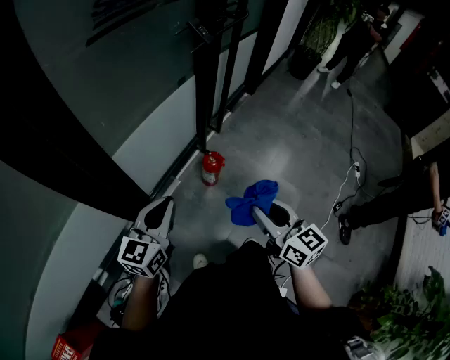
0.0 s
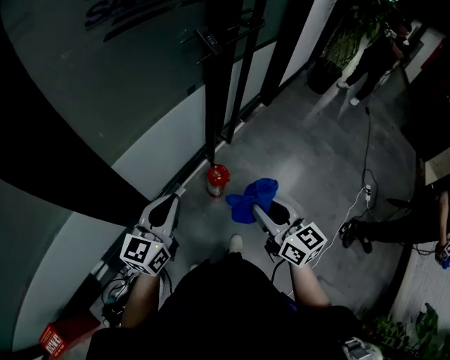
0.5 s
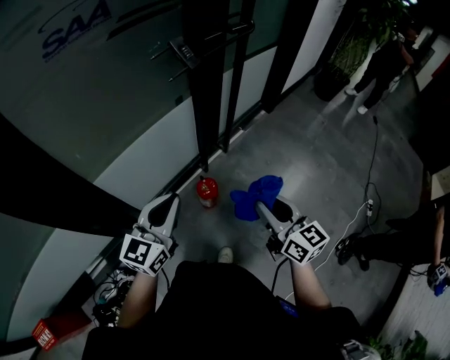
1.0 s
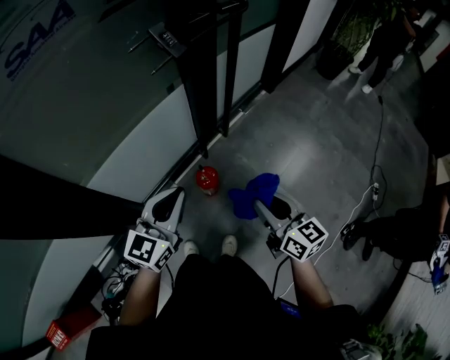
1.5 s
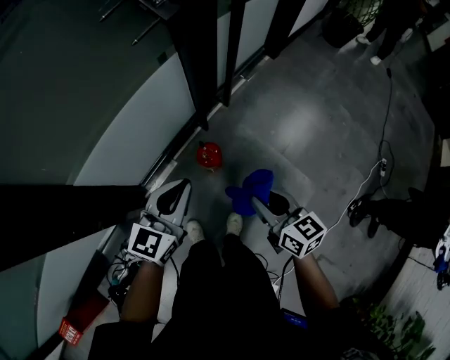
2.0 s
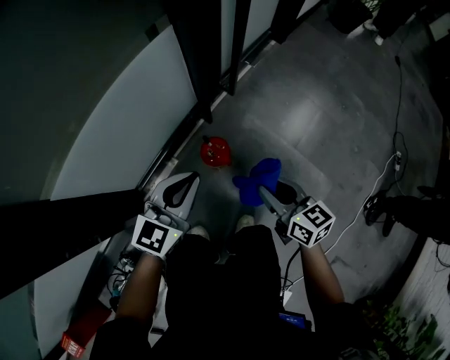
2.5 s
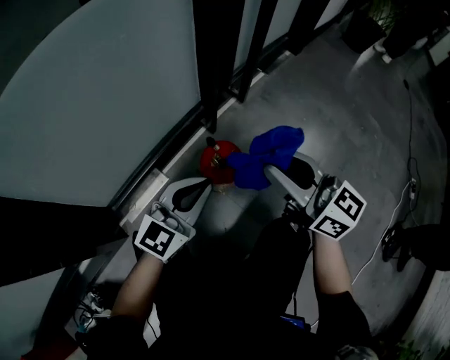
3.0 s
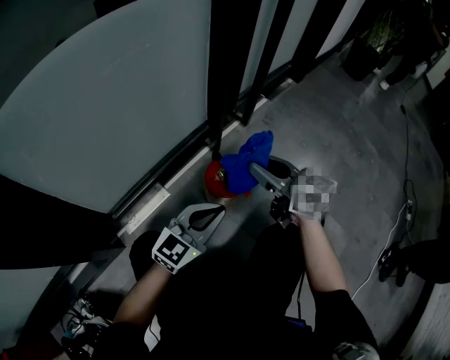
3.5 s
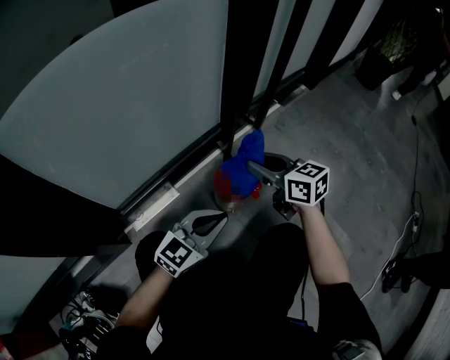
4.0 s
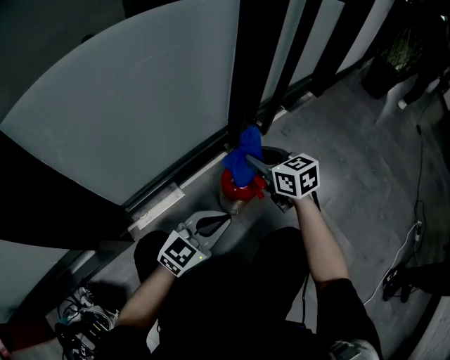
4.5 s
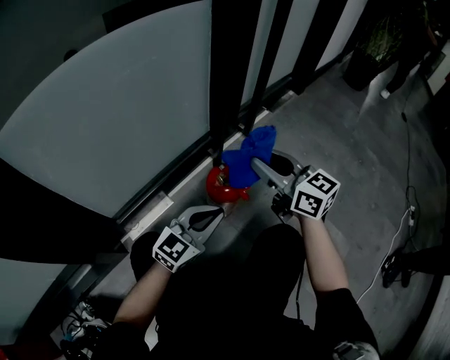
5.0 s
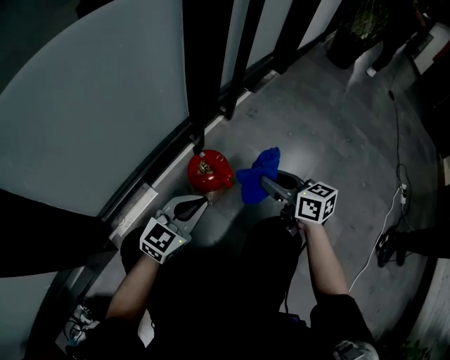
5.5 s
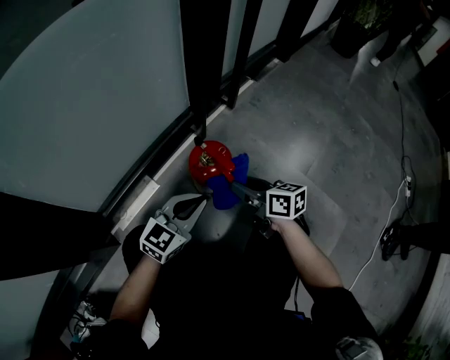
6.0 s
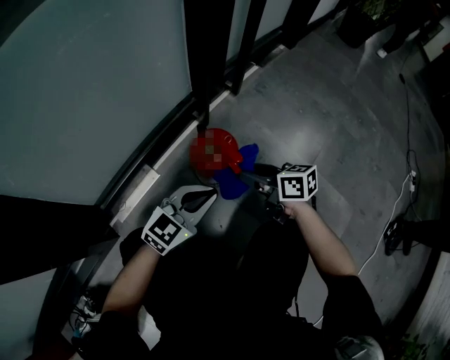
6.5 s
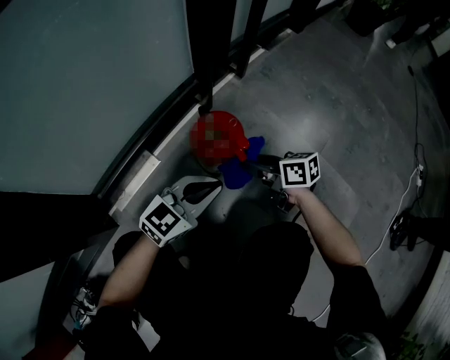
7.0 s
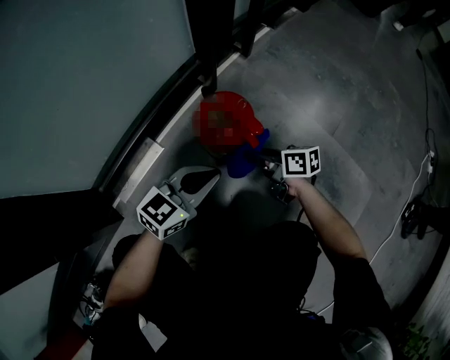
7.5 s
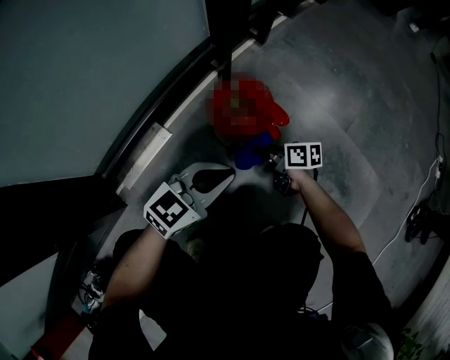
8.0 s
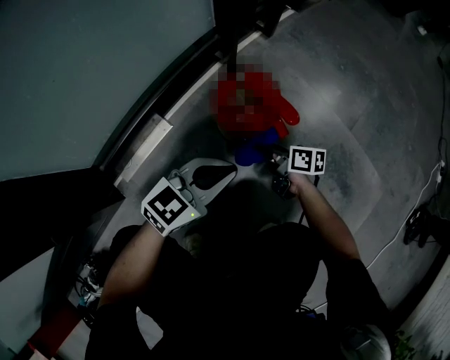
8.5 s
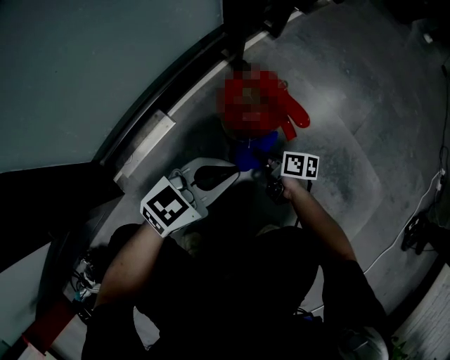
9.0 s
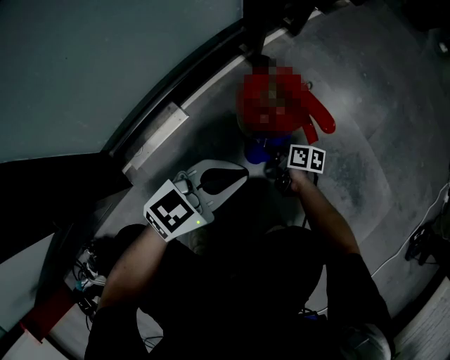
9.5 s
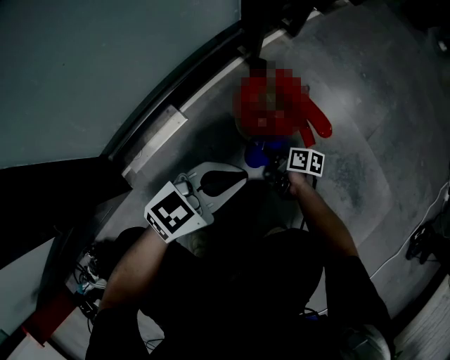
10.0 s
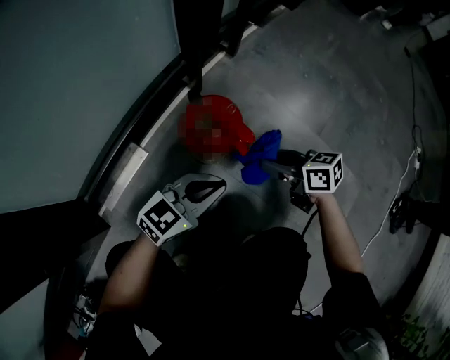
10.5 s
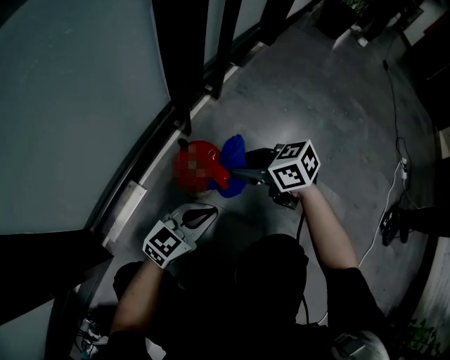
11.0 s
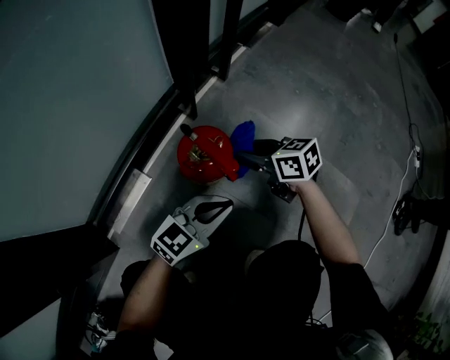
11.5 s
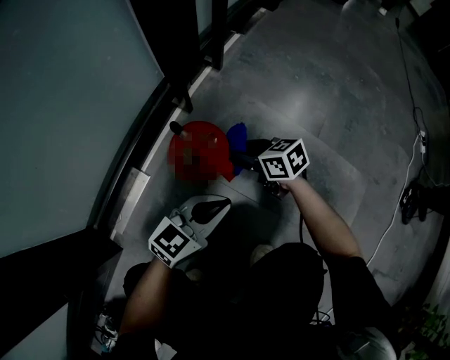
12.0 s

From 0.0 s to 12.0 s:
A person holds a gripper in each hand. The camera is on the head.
From 0.0 s to 2.0 s: The right gripper is displaced forward, downward and to the right by some 30 cm. The left gripper travels forward, to the right and downward by about 30 cm.
From 2.0 s to 4.0 s: The right gripper is displaced downward and forward by approximately 40 cm. The left gripper heads downward, covering some 50 cm.
From 4.0 s to 6.0 s: The right gripper travels downward and backward by some 15 cm, and swivels about 20 degrees.
From 6.0 s to 8.0 s: The right gripper moves downward, approximately 25 cm, and changes its angle by about 20 degrees. The left gripper goes roughly 10 cm downward.
From 8.0 s to 10.0 s: The right gripper shifts some 10 cm downward.
From 10.0 s to 12.0 s: The right gripper is displaced upward by roughly 20 cm, and turns by approximately 40 degrees, while the left gripper moves about 10 cm.

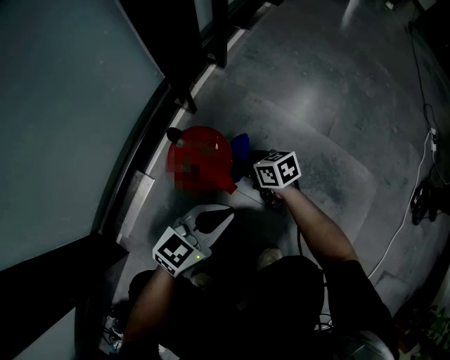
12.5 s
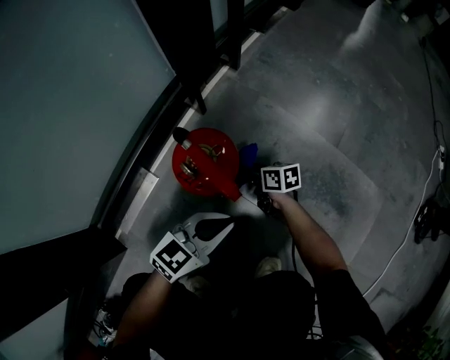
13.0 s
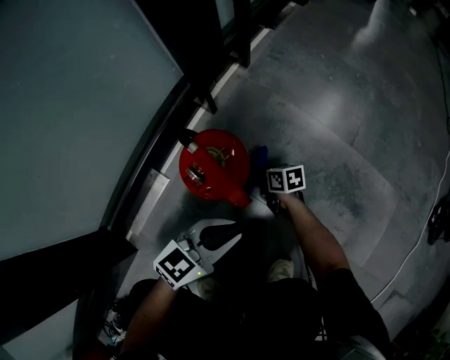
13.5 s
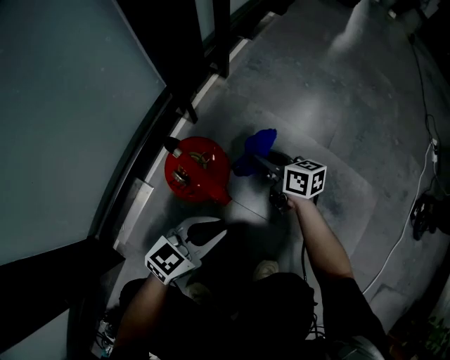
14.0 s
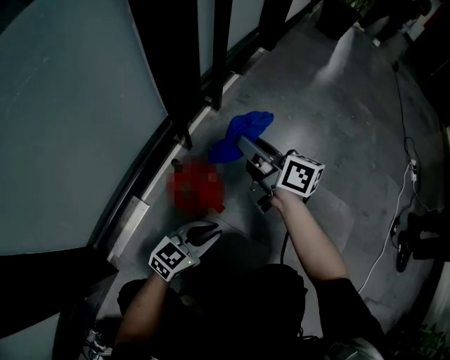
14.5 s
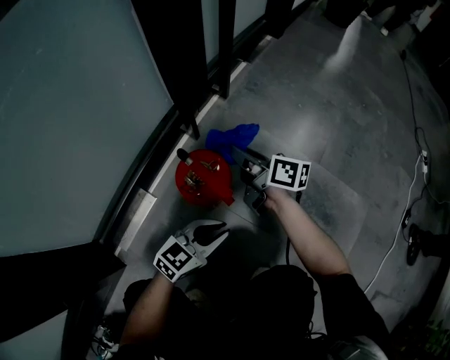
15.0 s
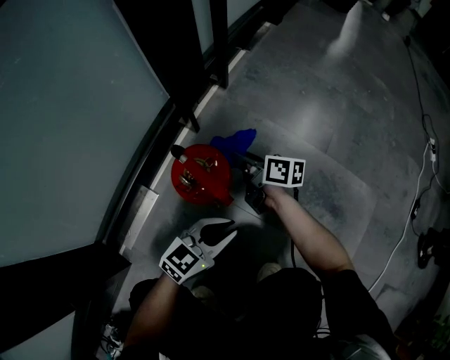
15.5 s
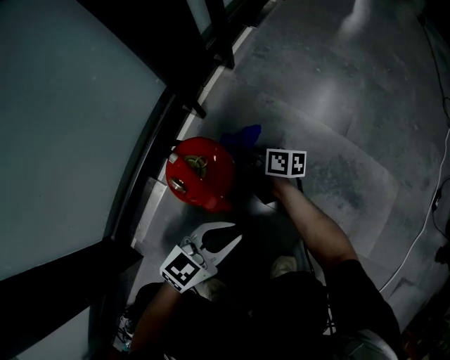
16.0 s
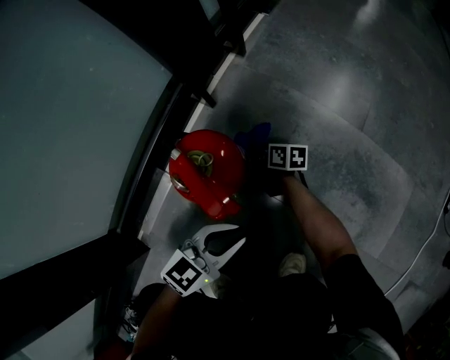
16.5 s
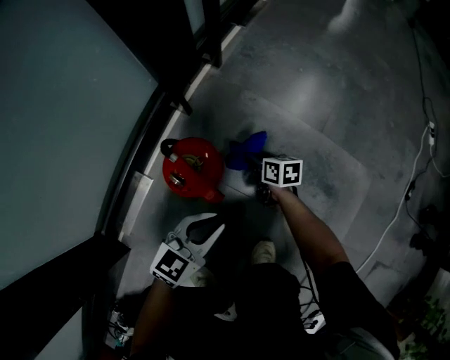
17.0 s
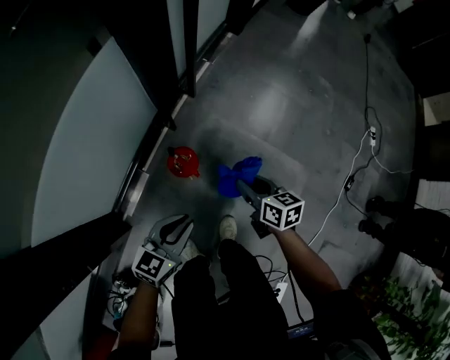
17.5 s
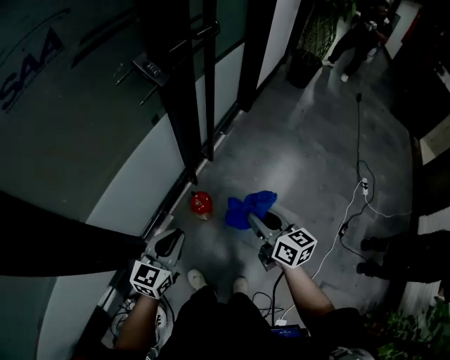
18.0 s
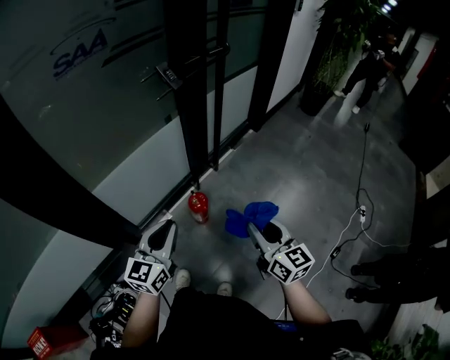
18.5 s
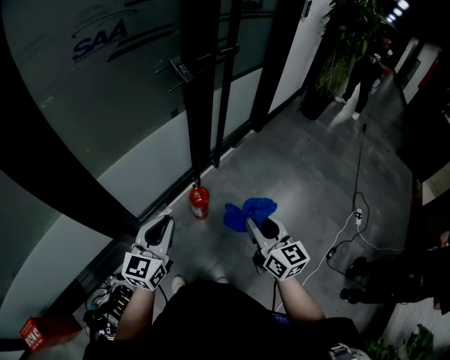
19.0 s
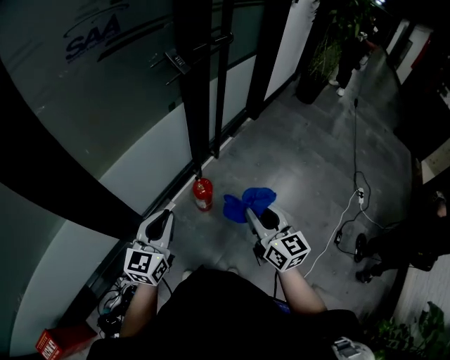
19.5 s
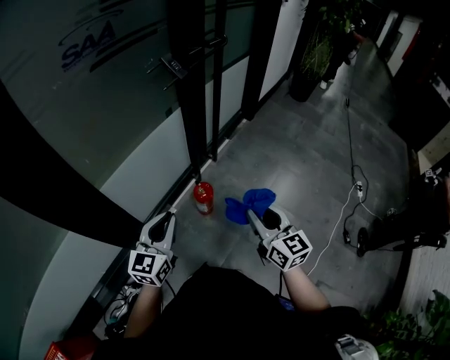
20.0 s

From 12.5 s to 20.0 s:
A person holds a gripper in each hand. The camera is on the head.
From 12.5 s to 14.5 s: The right gripper shifts about 30 cm upward, and angles its fingers upward, by some 40 degrees.
From 14.5 s to 16.5 s: The right gripper shifts approximately 40 cm downward, and tips its fingers downward by roughly 30 degrees.
From 16.5 s to 18.0 s: Both grippers travel together upward, some 80 cm. The right gripper changes its angle by roughly 40 degrees. Meanwhile the left gripper turns by some 30 degrees.
From 18.0 s to 20.0 s: The two grippers go about 15 cm backward and upward.

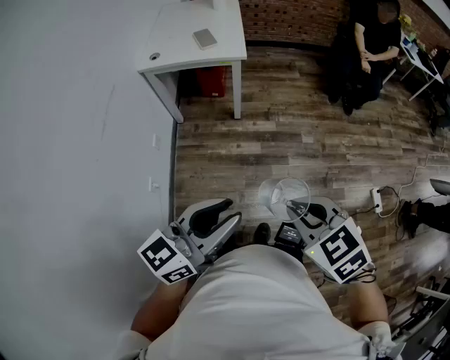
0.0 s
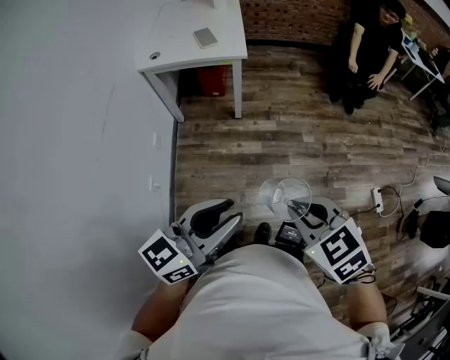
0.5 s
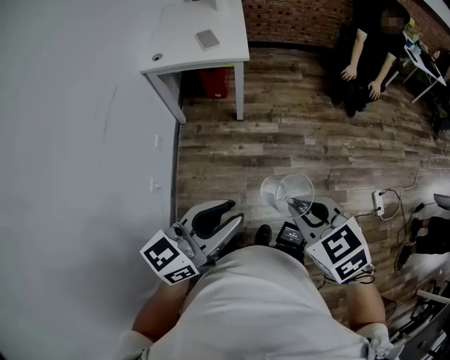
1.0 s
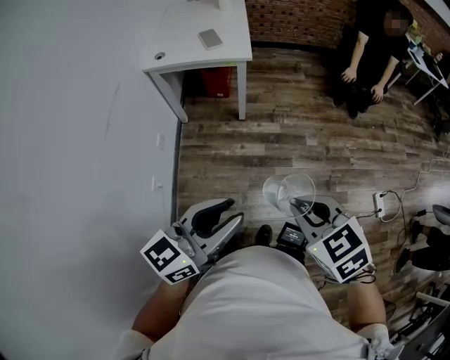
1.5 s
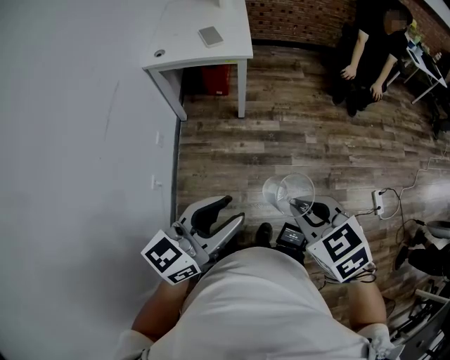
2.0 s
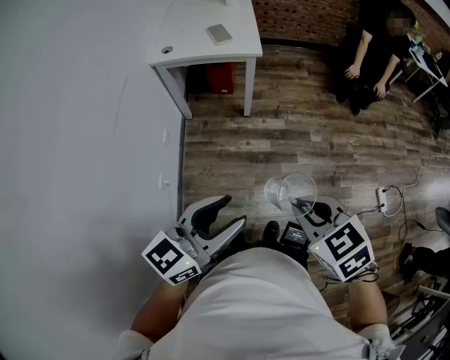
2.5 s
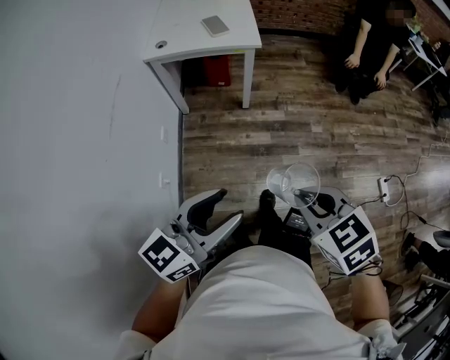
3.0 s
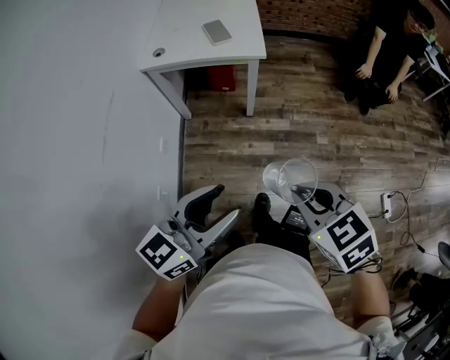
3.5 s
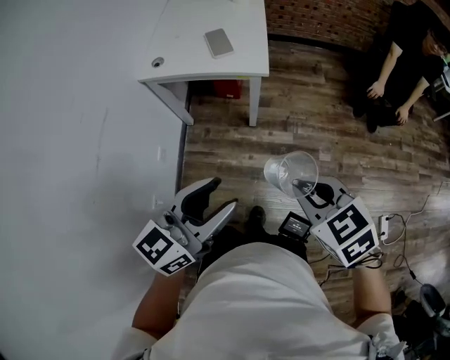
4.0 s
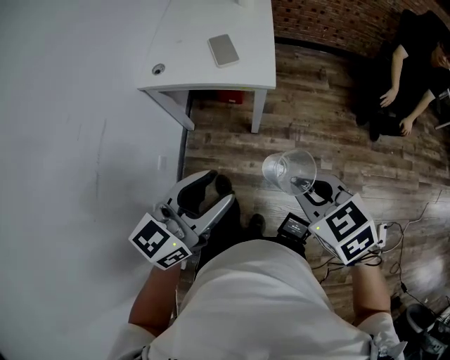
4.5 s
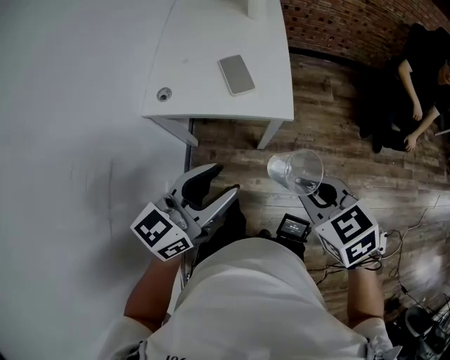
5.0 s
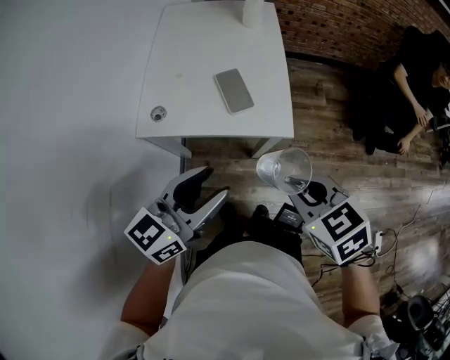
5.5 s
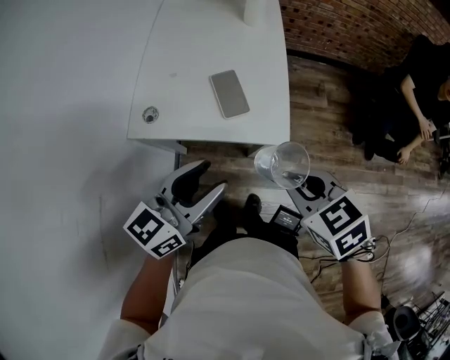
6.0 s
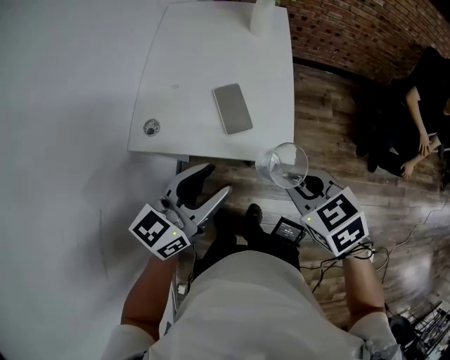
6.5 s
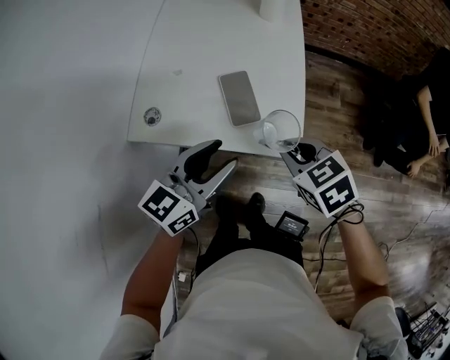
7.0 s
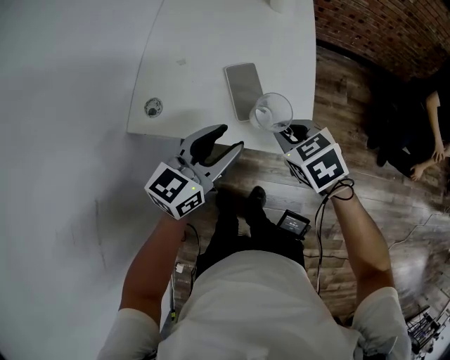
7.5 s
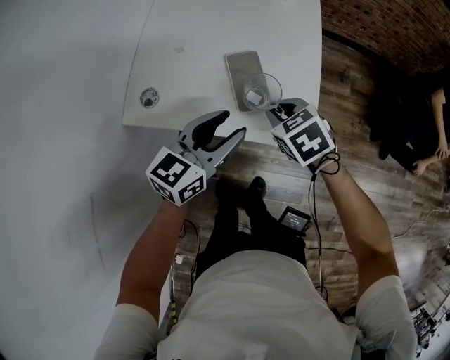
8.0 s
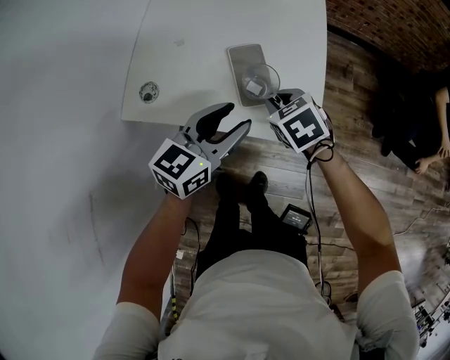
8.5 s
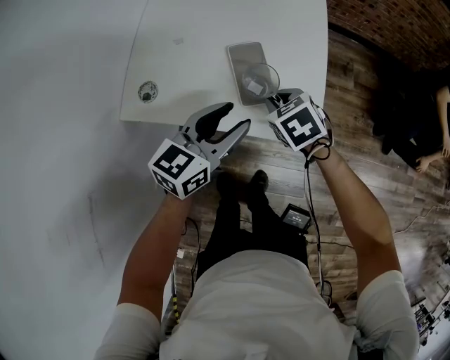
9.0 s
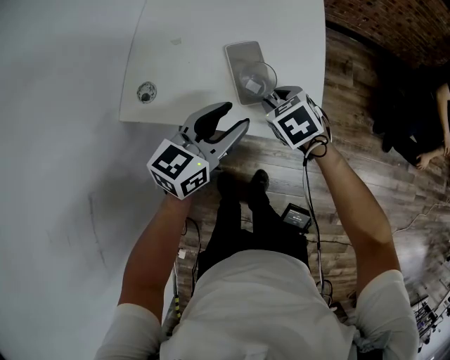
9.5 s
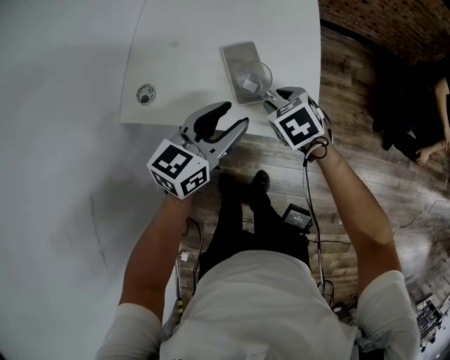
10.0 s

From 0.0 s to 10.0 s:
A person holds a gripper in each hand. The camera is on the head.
From 0.0 s to 2.0 s: The two grippers keep their place.
From 2.0 s to 4.0 s: Both grippers move forward, roughly 25 cm.
From 4.0 s to 6.0 s: The two grippers go approximately 35 cm forward.
From 6.0 s to 8.0 s: Both grippers move forward and downward, about 25 cm.
From 8.0 s to 10.0 s: The right gripper opens up.
